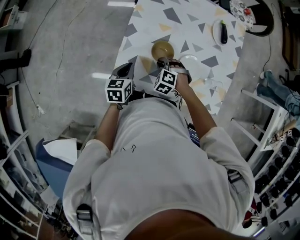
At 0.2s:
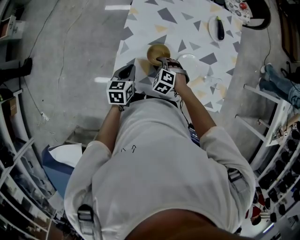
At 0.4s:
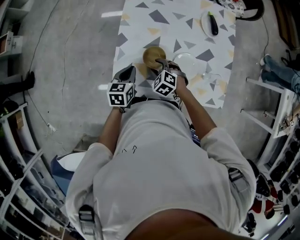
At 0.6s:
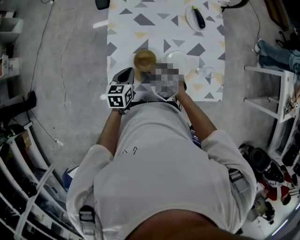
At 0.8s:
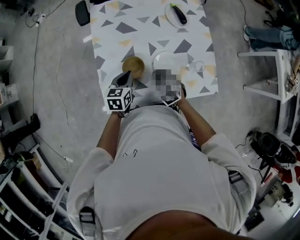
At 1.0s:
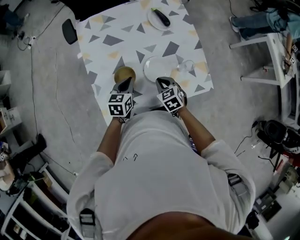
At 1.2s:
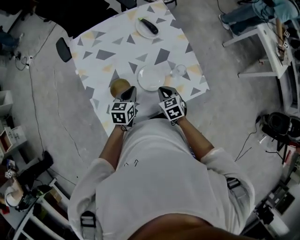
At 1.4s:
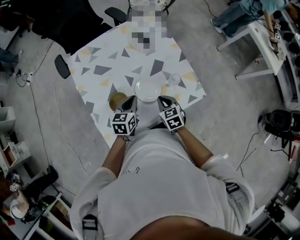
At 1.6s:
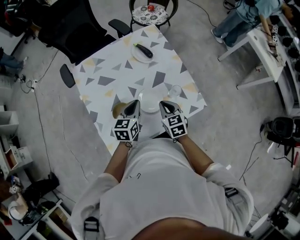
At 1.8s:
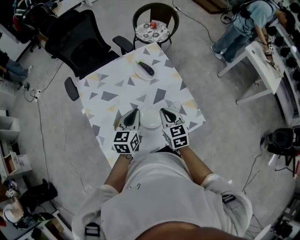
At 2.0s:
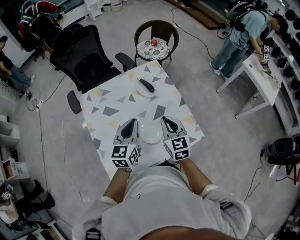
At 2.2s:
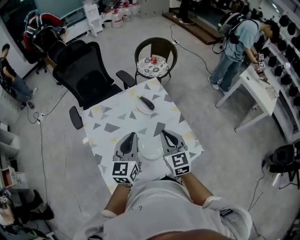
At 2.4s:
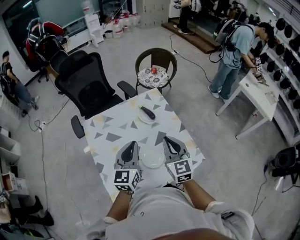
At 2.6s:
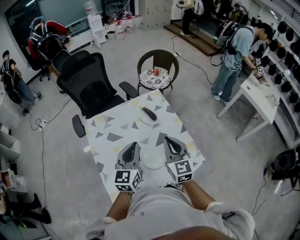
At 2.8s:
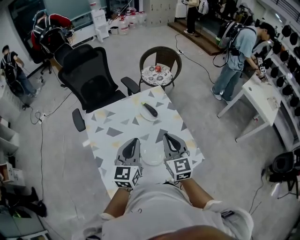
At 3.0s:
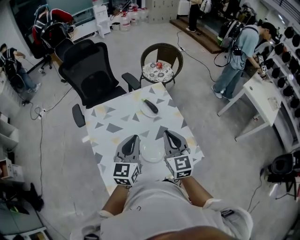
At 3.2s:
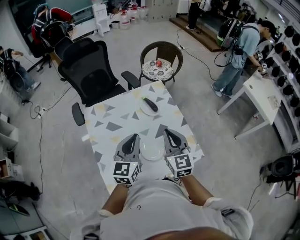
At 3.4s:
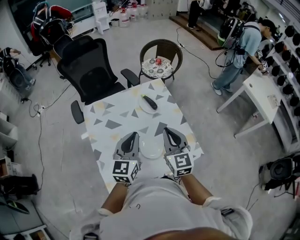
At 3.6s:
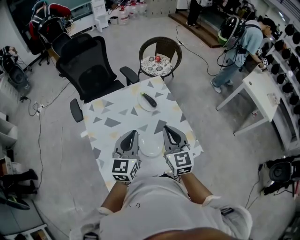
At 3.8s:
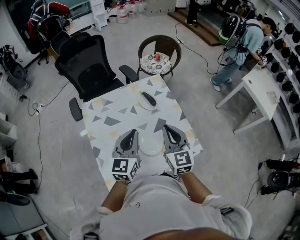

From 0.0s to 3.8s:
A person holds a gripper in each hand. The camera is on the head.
From 0.0s to 1.2s: The right gripper ends up about 20 cm from where it was, rolls clockwise, seen from behind, by roughly 80 degrees, and opens, then closes once more, while the left gripper changes place by approximately 20 cm, and turns by approximately 40 degrees.
From 1.2s to 2.6s: The grippers both shift upward by about 25 cm. The left gripper tips its fingers upward by some 30 degrees. Meanwhile the right gripper tips its fingers upward by about 40 degrees.
From 2.6s to 3.8s: The two grippers keep their place.

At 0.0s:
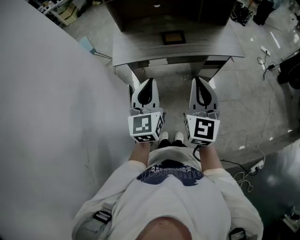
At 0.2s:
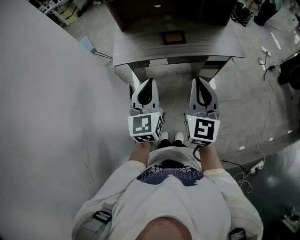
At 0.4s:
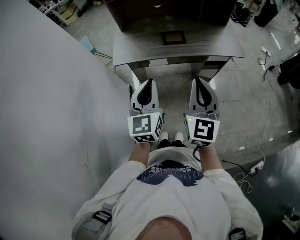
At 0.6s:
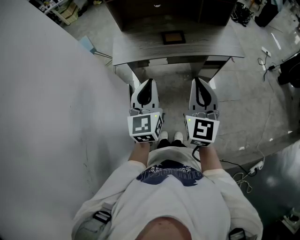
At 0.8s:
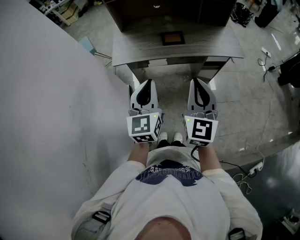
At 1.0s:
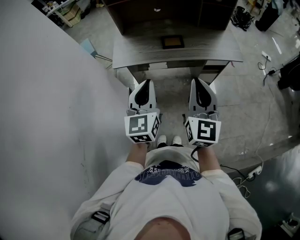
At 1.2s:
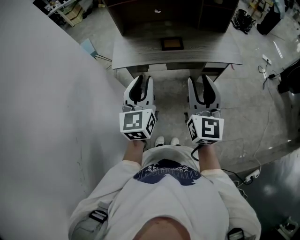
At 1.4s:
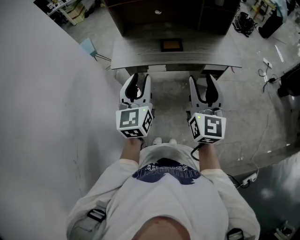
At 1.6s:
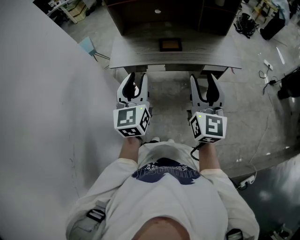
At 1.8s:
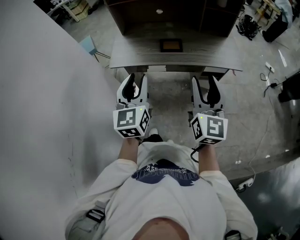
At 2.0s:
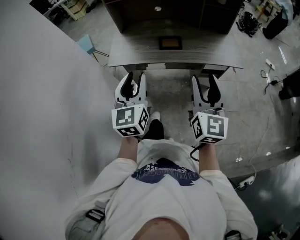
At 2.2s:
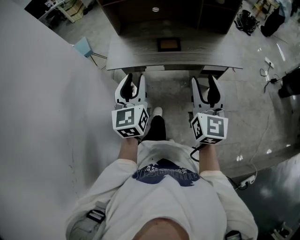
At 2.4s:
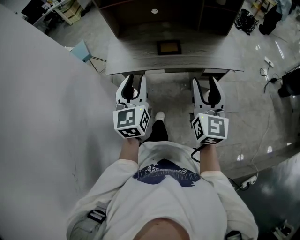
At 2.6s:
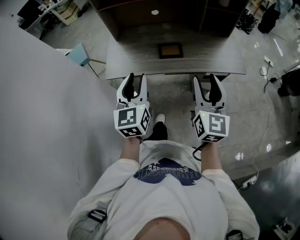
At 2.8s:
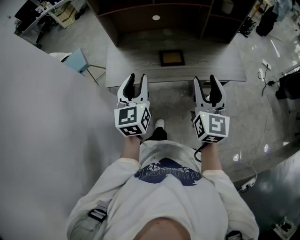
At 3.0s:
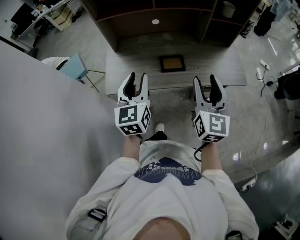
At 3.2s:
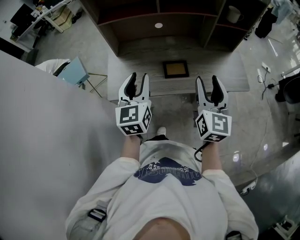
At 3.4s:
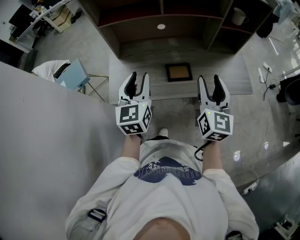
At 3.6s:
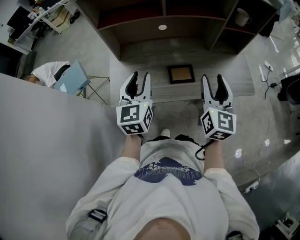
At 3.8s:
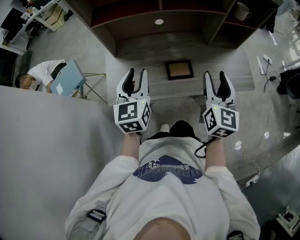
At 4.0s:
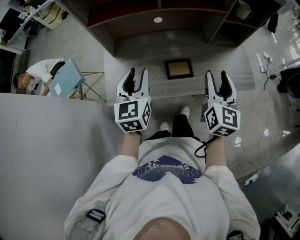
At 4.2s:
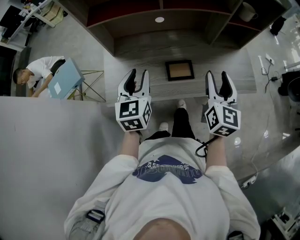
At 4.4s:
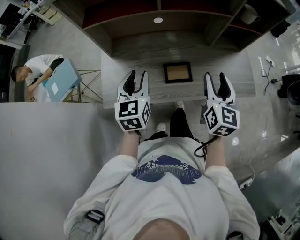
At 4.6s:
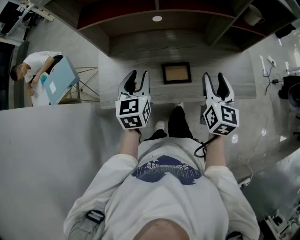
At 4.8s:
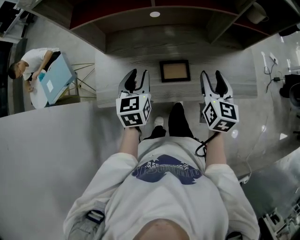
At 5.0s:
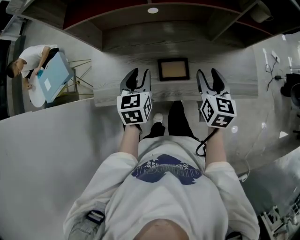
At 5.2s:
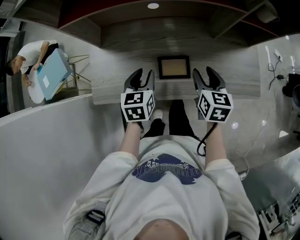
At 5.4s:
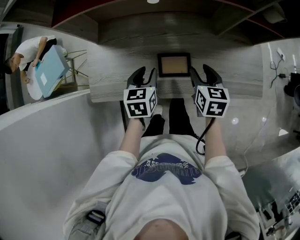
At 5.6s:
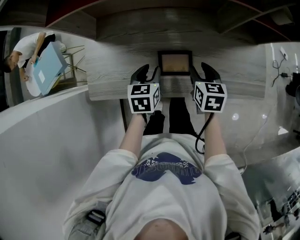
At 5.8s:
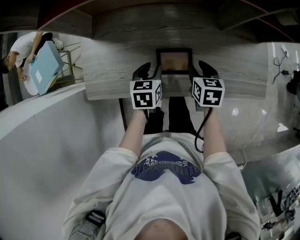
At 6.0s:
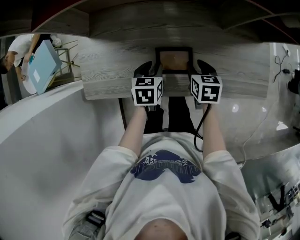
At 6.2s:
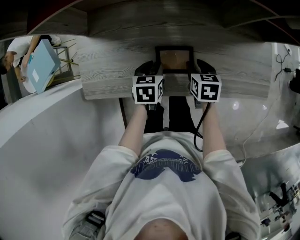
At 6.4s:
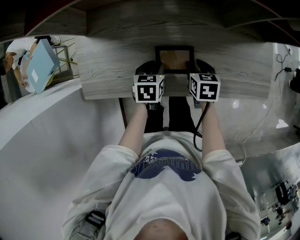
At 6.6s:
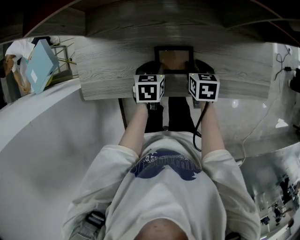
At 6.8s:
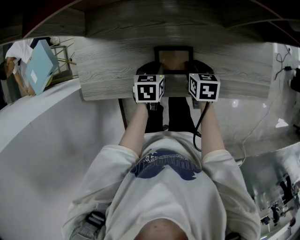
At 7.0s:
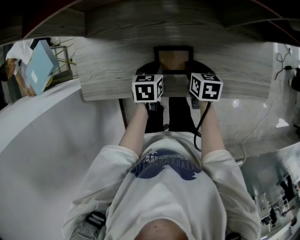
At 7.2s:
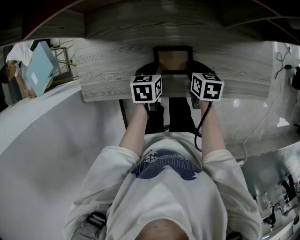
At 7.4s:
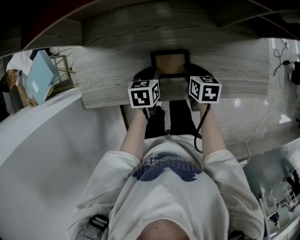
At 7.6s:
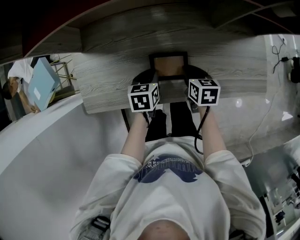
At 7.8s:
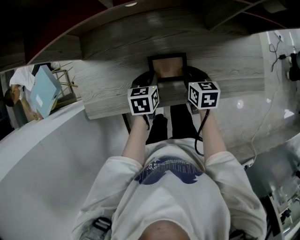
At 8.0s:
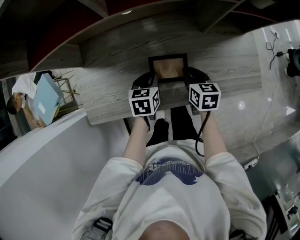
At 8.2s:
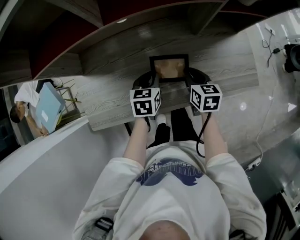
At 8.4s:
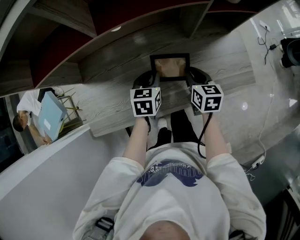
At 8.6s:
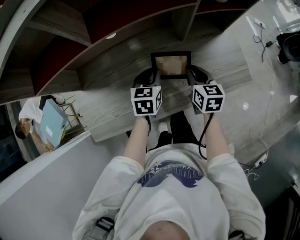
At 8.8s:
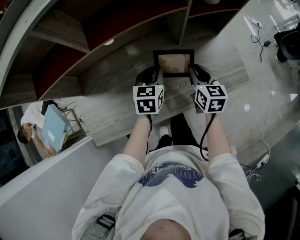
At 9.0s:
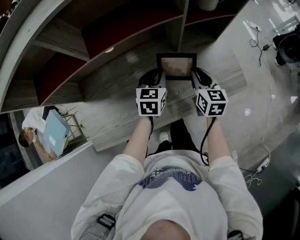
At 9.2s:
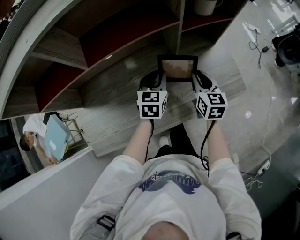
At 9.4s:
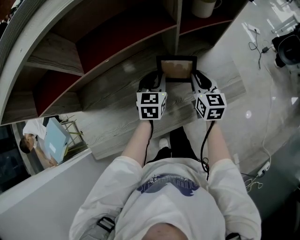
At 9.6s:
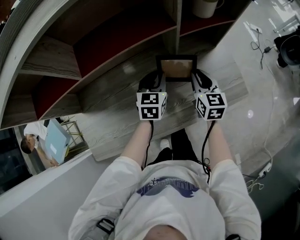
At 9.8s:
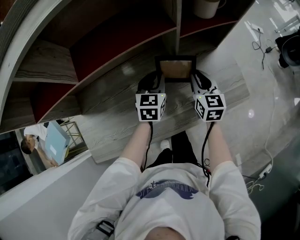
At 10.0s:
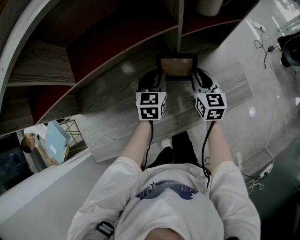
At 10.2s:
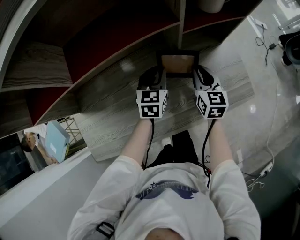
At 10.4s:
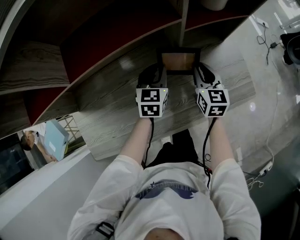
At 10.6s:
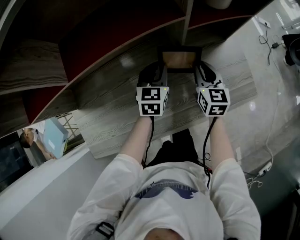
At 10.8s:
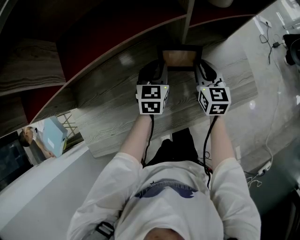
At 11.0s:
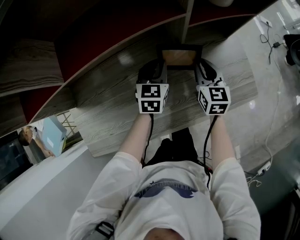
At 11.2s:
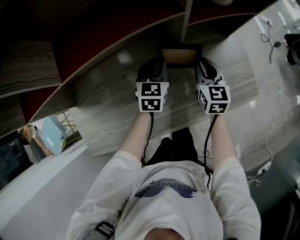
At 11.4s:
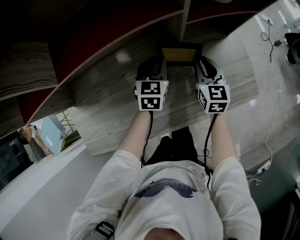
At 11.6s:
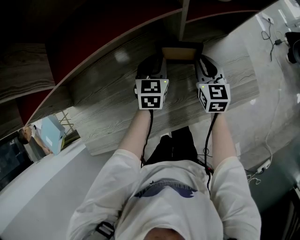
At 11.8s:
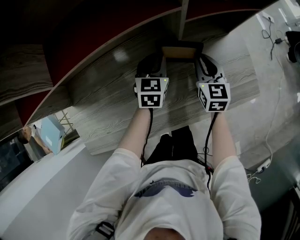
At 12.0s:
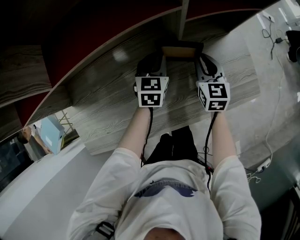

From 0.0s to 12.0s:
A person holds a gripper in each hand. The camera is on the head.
From 0.0s to 1.6s: The left gripper opens; the right gripper goes some 10 cm to the right, and opens.
From 1.6s to 3.0s: The grippers both shift forward by some 20 cm.
From 3.0s to 4.4s: Both grippers move forward and downward, about 20 cm.
From 4.4s to 6.0s: The grippers both shift downward by roughly 25 cm. The left gripper tilts its fingers approximately 30 degrees downward. Meanwhile the right gripper points its fingers roughly 40 degrees further downward.
From 6.0s to 7.6s: The right gripper closes.
From 7.6s to 9.0s: The right gripper heads to the right and upward, covering about 20 cm, and swivels approximately 30 degrees, while the left gripper heads to the right, upward and forward, covering roughly 25 cm, and swivels about 30 degrees.
From 9.0s to 10.4s: The left gripper is displaced forward by approximately 10 cm. Meanwhile the right gripper moves forward and downward, some 10 cm.
From 10.4s to 12.0s: The left gripper ends up about 5 cm from where it was.

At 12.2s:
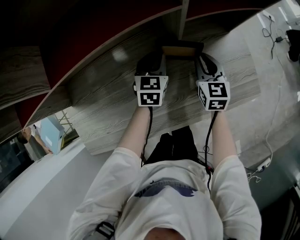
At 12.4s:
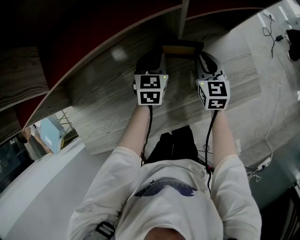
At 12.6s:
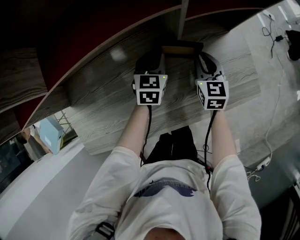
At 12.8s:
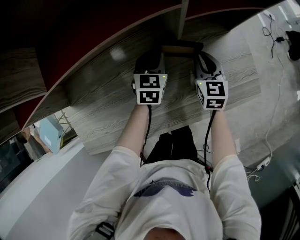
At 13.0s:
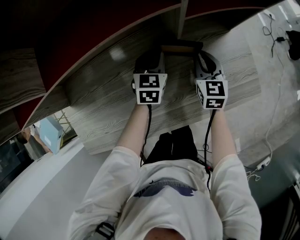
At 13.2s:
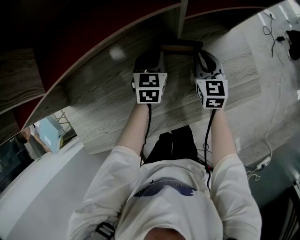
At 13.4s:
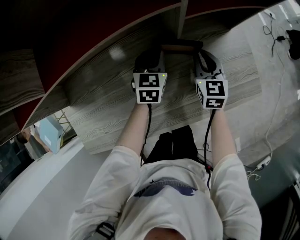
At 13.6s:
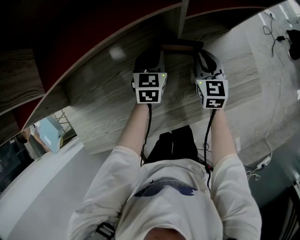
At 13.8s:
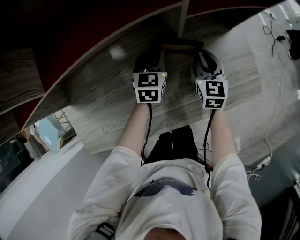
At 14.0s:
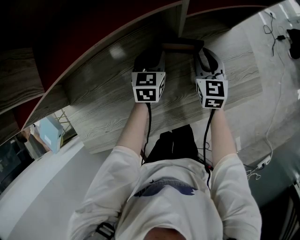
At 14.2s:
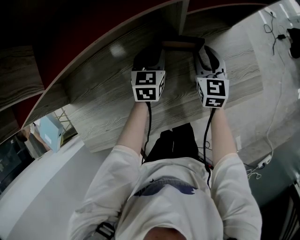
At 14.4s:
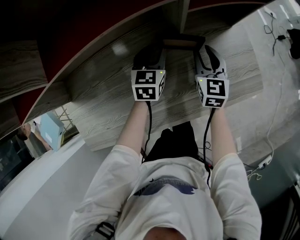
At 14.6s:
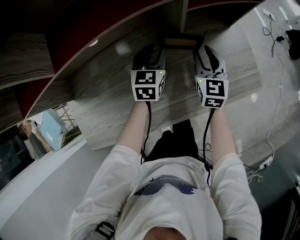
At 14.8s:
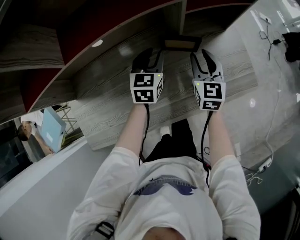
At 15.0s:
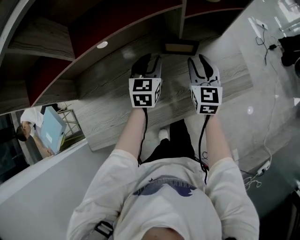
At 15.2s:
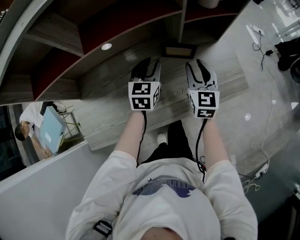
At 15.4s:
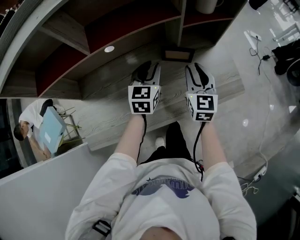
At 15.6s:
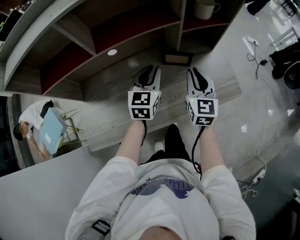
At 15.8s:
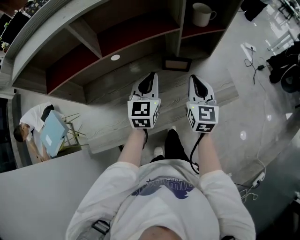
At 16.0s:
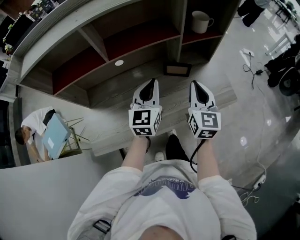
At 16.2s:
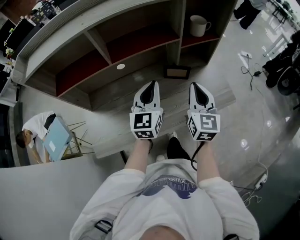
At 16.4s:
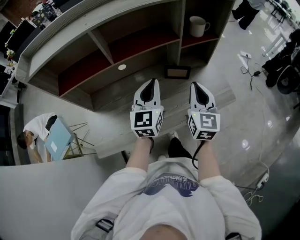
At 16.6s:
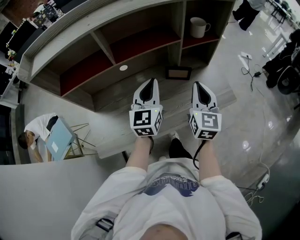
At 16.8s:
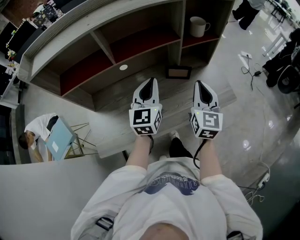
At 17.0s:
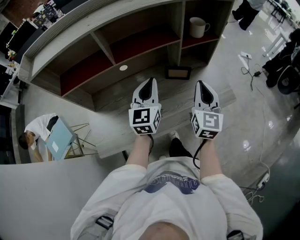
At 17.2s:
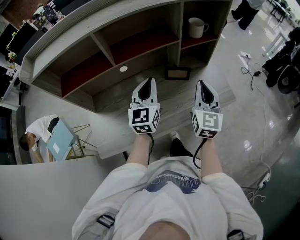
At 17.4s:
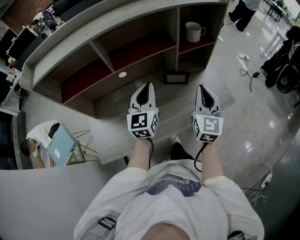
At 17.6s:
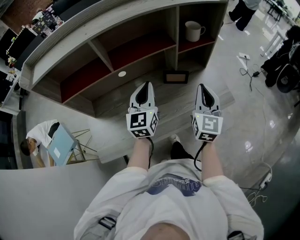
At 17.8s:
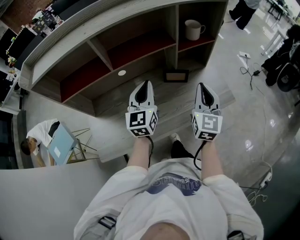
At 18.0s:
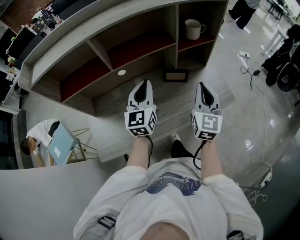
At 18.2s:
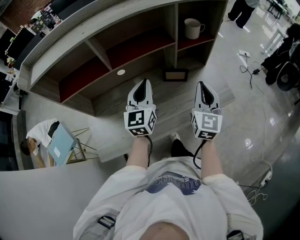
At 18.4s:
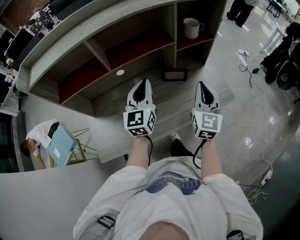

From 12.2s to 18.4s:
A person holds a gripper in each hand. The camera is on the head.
From 12.2s to 13.8s: There are only small adjustments of the grippers.
From 13.8s to 15.4s: Both grippers move upward and backward, some 20 cm.
From 15.4s to 16.8s: Both grippers travel together upward and backward, approximately 20 cm. The right gripper closes. Meanwhile the left gripper closes up.
From 16.8s to 18.4s: The grippers move only a little.

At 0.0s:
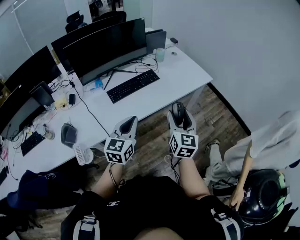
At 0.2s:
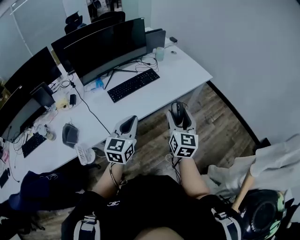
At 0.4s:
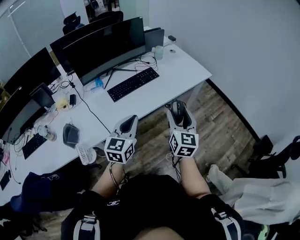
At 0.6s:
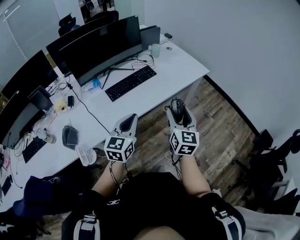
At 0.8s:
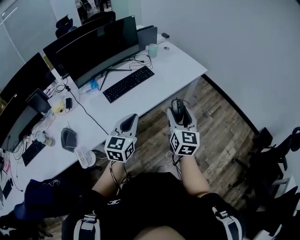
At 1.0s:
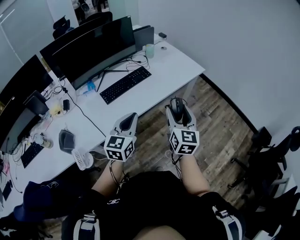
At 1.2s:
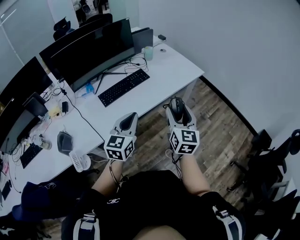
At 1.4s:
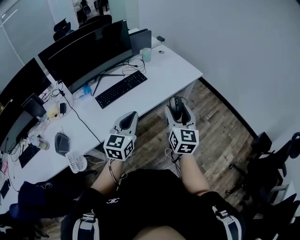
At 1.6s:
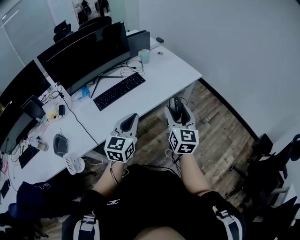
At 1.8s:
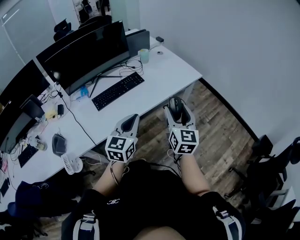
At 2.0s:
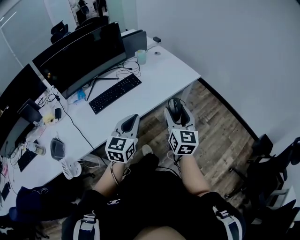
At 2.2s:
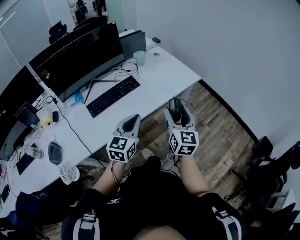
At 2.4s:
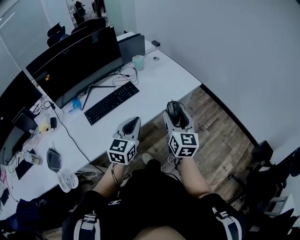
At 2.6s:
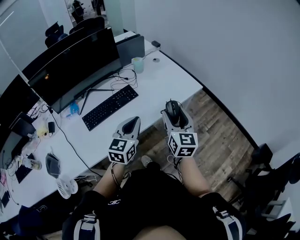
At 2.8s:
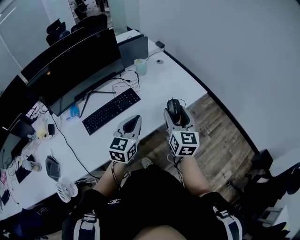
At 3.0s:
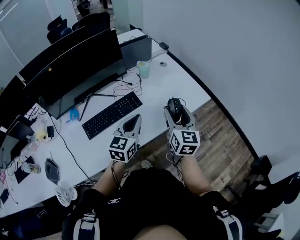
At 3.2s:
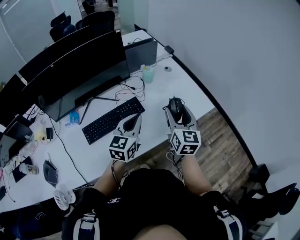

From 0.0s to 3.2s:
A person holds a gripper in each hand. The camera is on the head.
From 0.0s to 1.6s: The right gripper goes roughly 10 cm to the right; the left gripper shifts approximately 10 cm to the right and forward.
From 1.6s to 3.2s: Both grippers move forward, about 40 cm.
